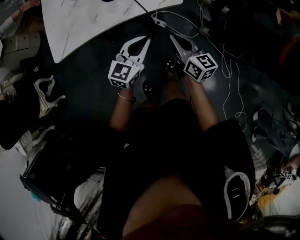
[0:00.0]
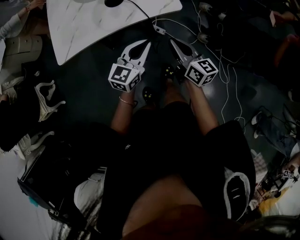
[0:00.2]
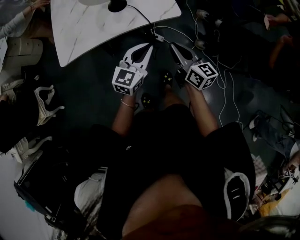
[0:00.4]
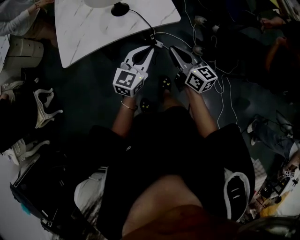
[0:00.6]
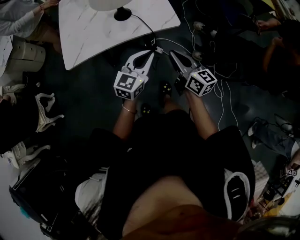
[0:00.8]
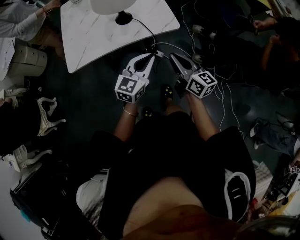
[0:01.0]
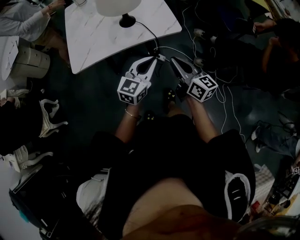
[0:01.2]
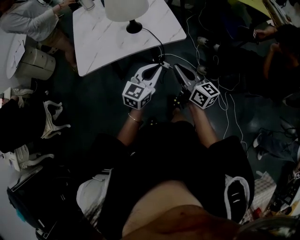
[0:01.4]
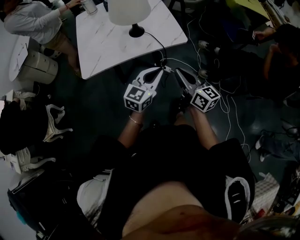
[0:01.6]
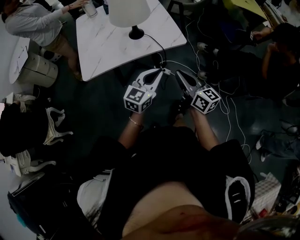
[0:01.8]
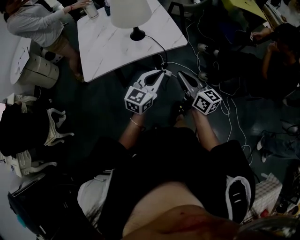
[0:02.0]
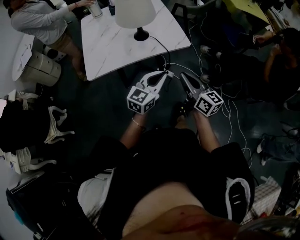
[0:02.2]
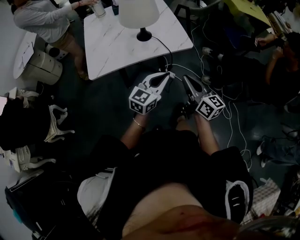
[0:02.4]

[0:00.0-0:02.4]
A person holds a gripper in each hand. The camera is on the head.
0:00.0 to 0:01.2: Both grippers move upward and backward, approximately 10 cm.
0:01.2 to 0:02.4: The right gripper shifts by roughly 5 cm.

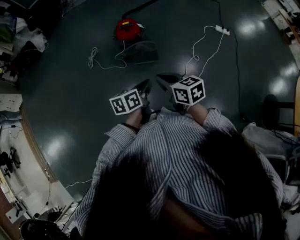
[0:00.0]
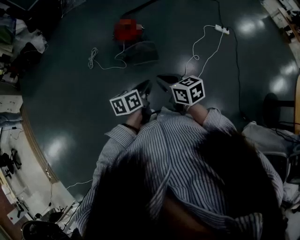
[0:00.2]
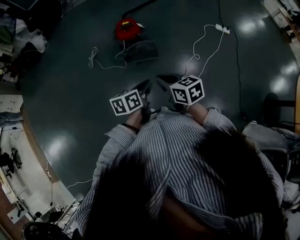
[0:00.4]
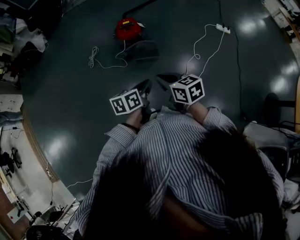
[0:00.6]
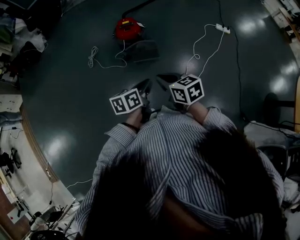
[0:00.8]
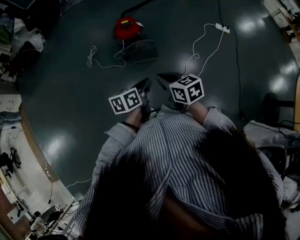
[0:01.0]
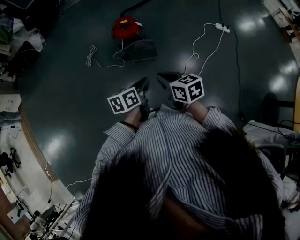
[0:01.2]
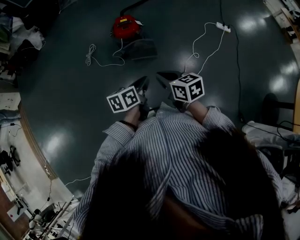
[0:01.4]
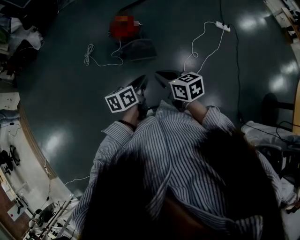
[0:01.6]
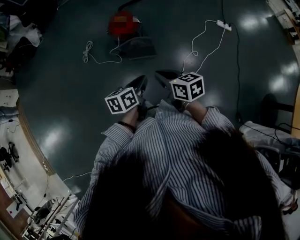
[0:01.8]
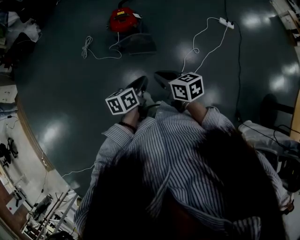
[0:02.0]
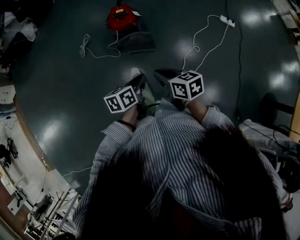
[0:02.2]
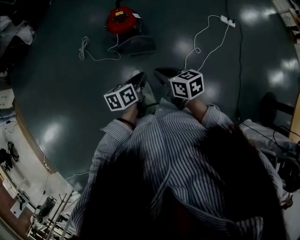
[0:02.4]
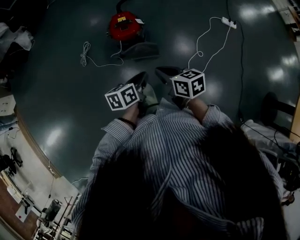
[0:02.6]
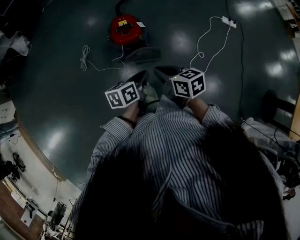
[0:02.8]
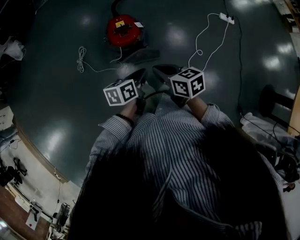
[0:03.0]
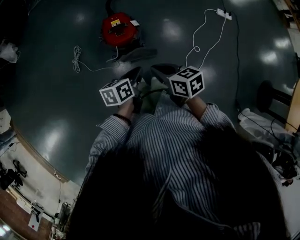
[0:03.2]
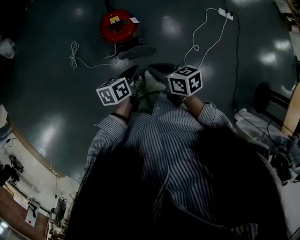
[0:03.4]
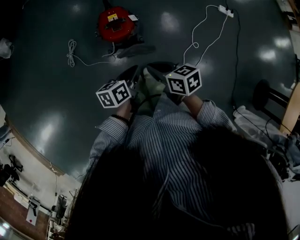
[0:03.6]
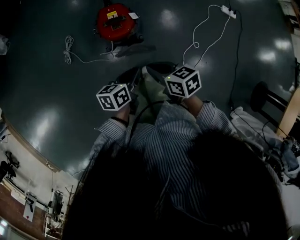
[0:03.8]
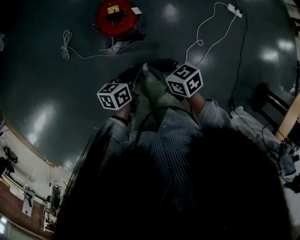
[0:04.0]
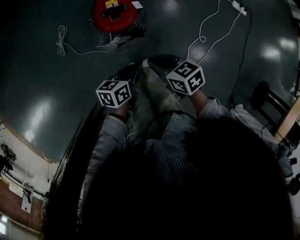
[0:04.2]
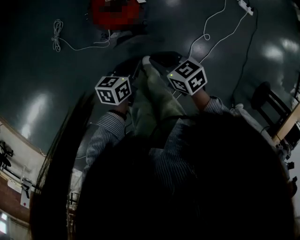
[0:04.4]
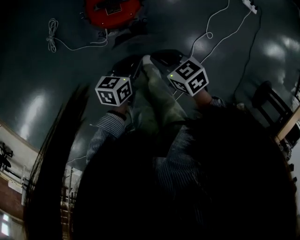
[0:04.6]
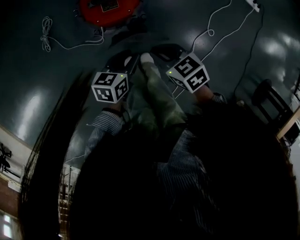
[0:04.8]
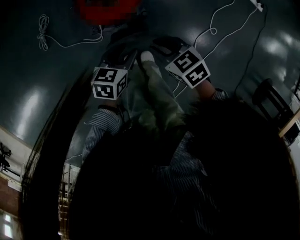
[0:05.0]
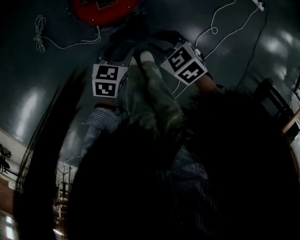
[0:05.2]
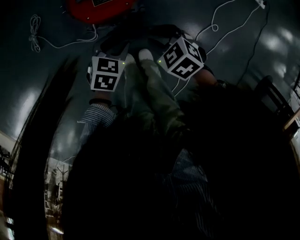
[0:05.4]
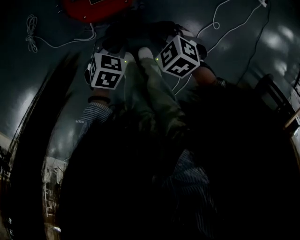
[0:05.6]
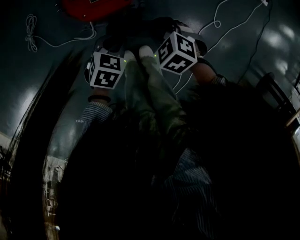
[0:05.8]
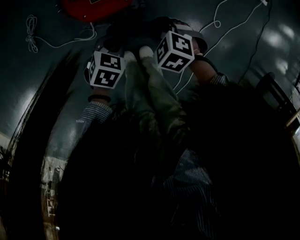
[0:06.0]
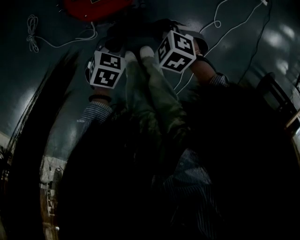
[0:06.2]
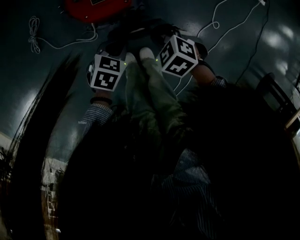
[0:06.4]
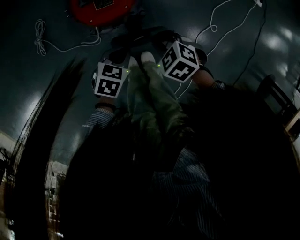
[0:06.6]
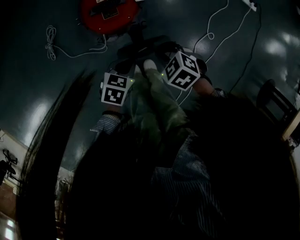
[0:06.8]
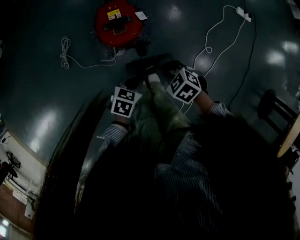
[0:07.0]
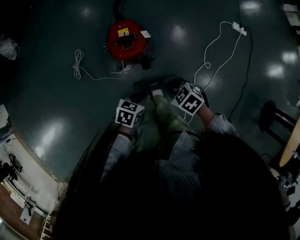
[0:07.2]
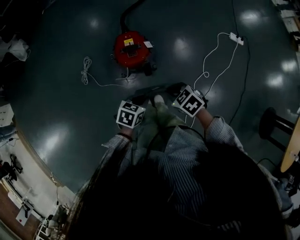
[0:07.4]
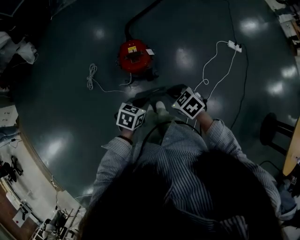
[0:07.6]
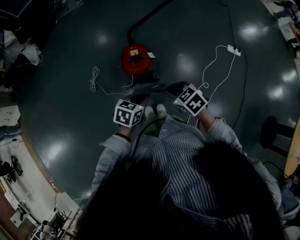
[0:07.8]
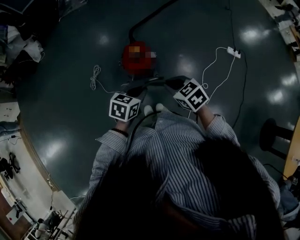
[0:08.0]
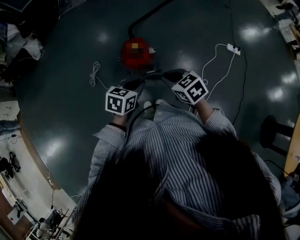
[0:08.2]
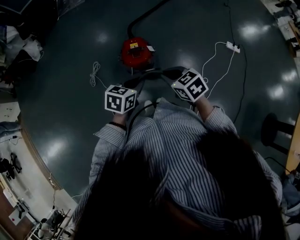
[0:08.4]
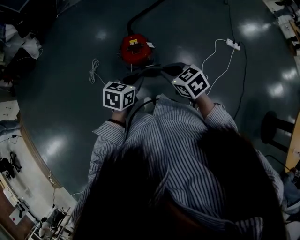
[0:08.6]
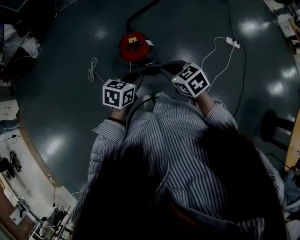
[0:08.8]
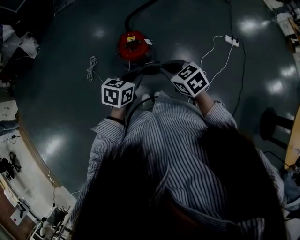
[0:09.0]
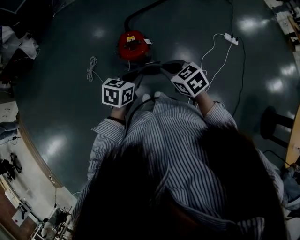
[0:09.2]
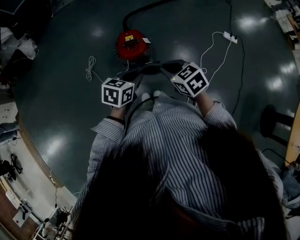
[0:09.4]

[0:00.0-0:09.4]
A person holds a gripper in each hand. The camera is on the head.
0:00.0 to 0:01.6: The right gripper shifts by about 5 cm. The left gripper moves forward, about 5 cm.
0:01.6 to 0:03.2: Both grippers travel together forward, approximately 25 cm.
0:03.2 to 0:04.8: The grippers both shift downward by some 30 cm. The right gripper turns by approximately 30 degrees; the left gripper opens.
0:04.8 to 0:06.2: Both grippers move downward, approximately 10 cm. The left gripper changes its angle by roughly 40 degrees, and closes, while the right gripper changes its angle by some 40 degrees, and opens, then closes once more.
0:06.2 to 0:07.8: Both grippers move upward, roughly 40 cm. The right gripper swivels roughly 30 degrees.
0:07.8 to 0:09.4: The left gripper travels upward by about 5 cm.

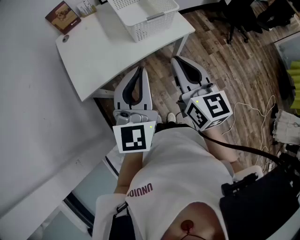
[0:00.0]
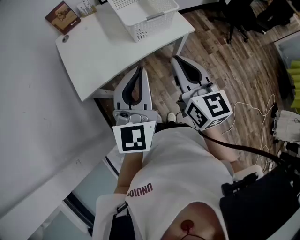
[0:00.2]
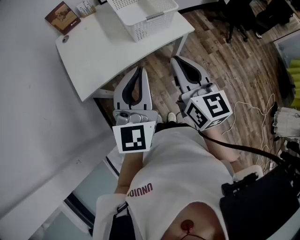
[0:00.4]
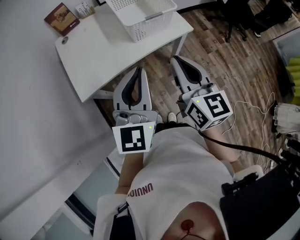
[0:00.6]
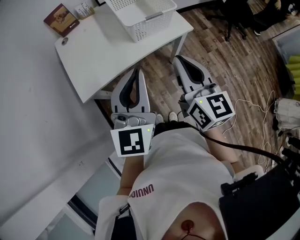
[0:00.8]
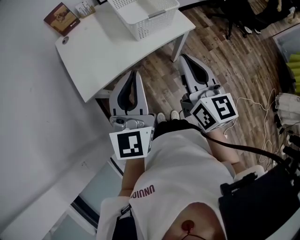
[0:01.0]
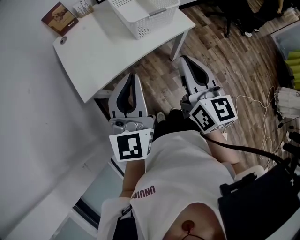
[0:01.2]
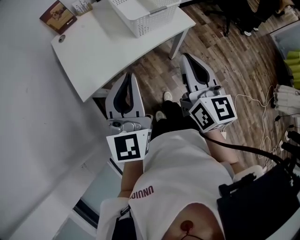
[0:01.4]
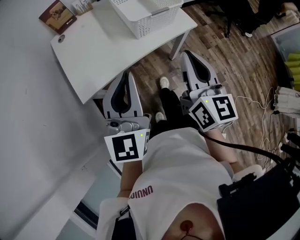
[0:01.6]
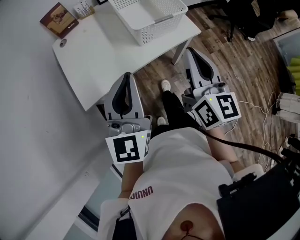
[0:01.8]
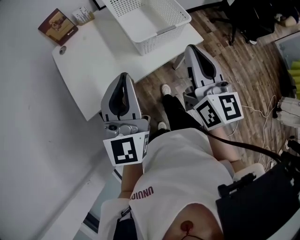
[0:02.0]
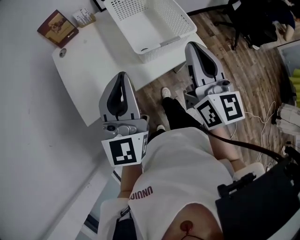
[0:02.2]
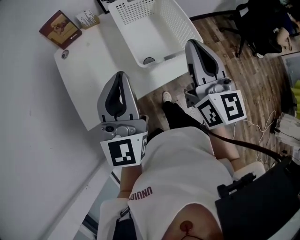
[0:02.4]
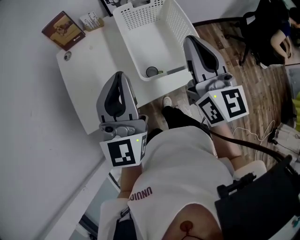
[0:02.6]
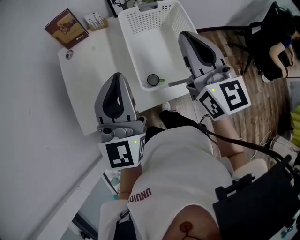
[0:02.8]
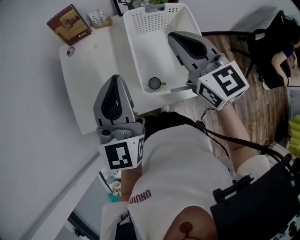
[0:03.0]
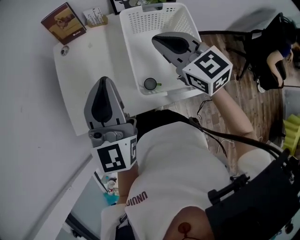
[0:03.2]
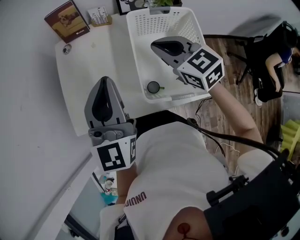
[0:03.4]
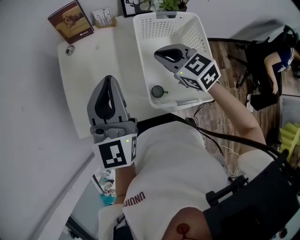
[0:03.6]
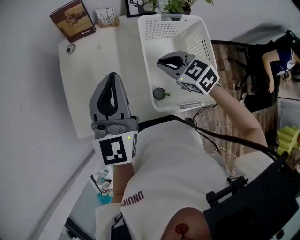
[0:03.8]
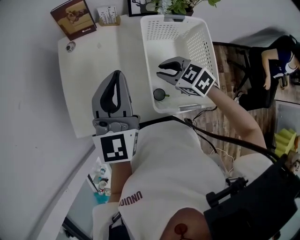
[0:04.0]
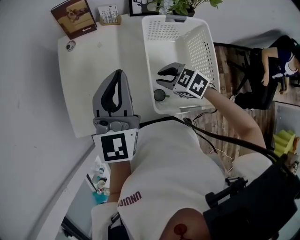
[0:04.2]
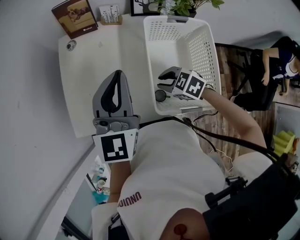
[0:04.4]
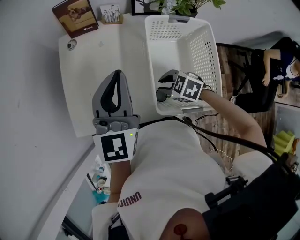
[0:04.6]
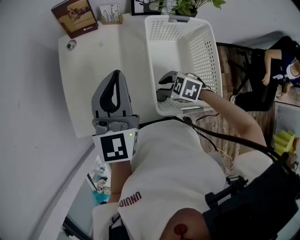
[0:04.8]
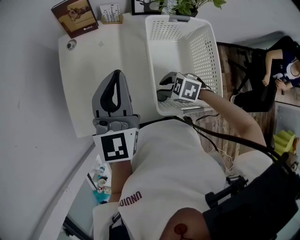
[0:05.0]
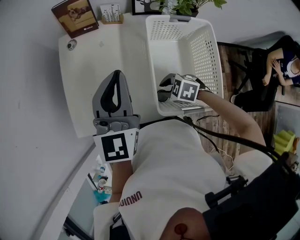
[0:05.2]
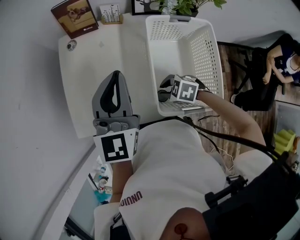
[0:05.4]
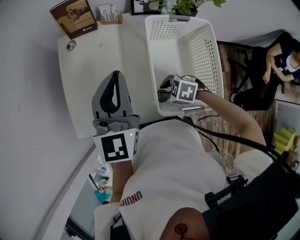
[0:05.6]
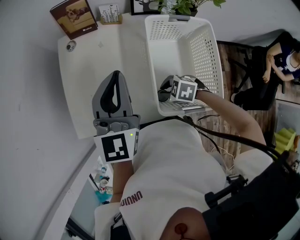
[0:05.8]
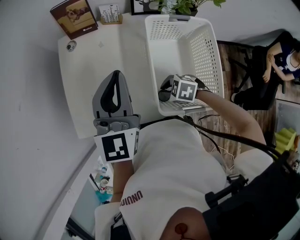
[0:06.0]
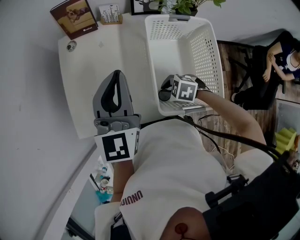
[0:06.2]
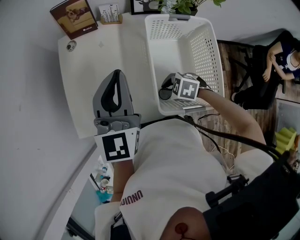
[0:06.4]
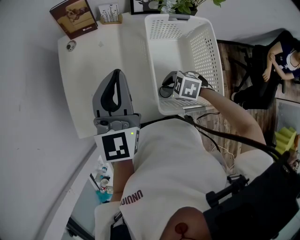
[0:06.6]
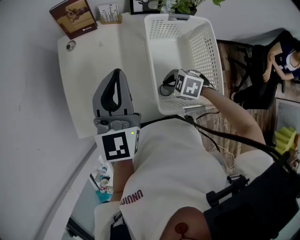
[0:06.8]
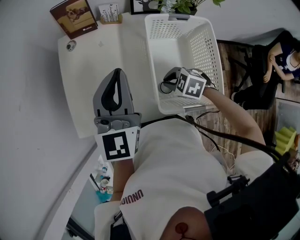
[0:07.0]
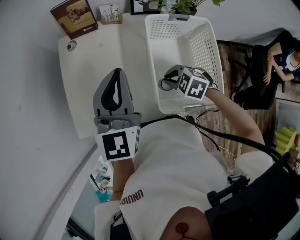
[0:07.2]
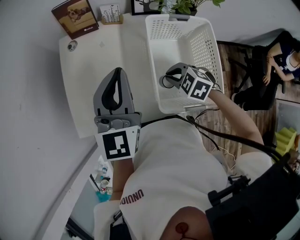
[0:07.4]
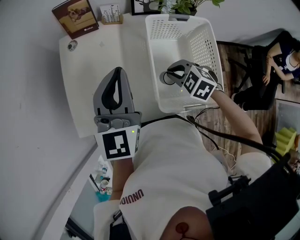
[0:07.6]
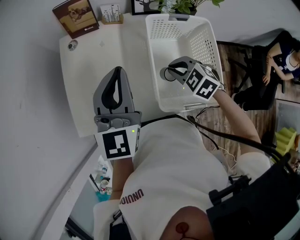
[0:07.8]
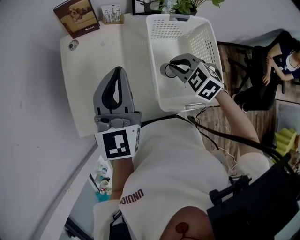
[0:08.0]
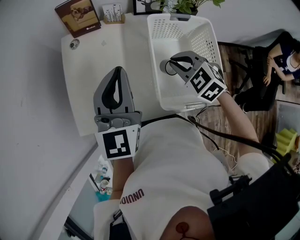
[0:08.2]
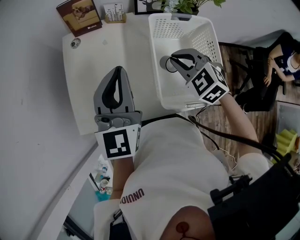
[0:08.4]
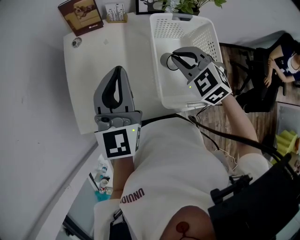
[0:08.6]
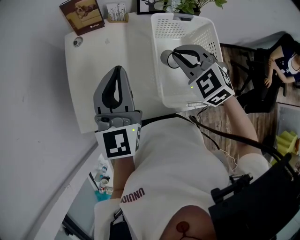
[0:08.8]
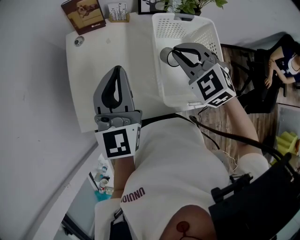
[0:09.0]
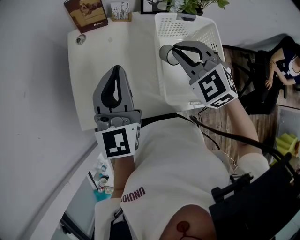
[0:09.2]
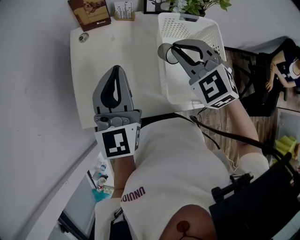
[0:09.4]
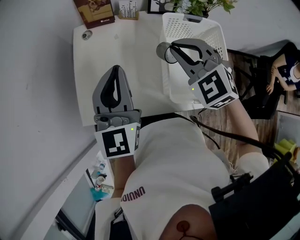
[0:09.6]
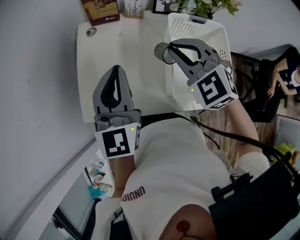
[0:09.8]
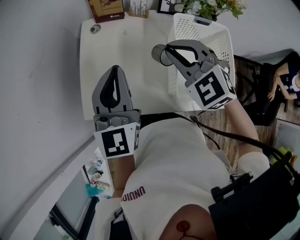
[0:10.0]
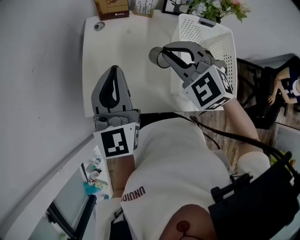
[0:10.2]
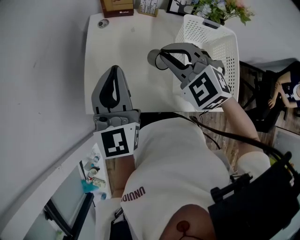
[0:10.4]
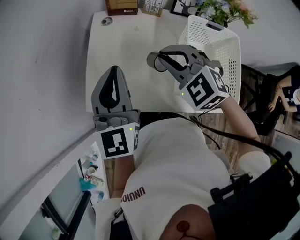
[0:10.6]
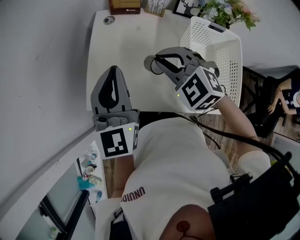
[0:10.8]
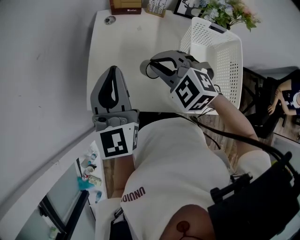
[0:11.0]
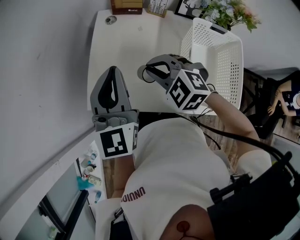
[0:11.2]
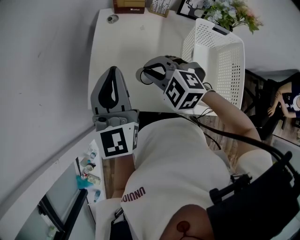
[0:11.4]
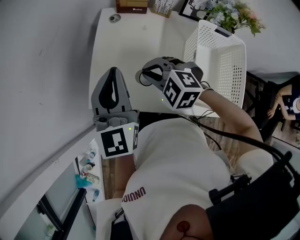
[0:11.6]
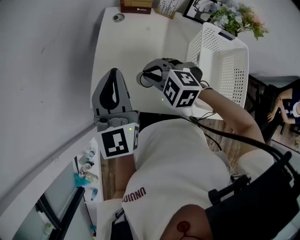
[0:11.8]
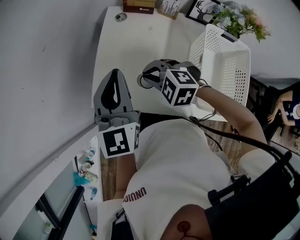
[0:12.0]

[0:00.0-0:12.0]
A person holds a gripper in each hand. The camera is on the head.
0:00.0 to 0:01.6: The left gripper is displaced to the left by approximately 5 cm.
0:01.6 to 0:03.0: The right gripper moves some 35 cm, and changes its angle by roughly 40 degrees. Meanwhile the left gripper ends up some 25 cm from where it was.
0:03.0 to 0:04.4: The left gripper changes place by some 10 cm; the right gripper heads downward, covering approximately 25 cm, points its fingers about 50 degrees further downward, and opens.
0:04.4 to 0:06.0: The right gripper goes some 5 cm downward.
0:06.0 to 0:07.6: The right gripper travels upward and to the right by some 10 cm, and rotates approximately 20 degrees.
0:07.6 to 0:09.0: The right gripper is displaced upward by some 15 cm, and changes its angle by about 30 degrees.
0:09.0 to 0:10.4: Both grippers move to the left, about 10 cm.
0:10.4 to 0:12.0: The right gripper moves downward and to the left, approximately 15 cm, and turns by roughly 30 degrees. The left gripper heads to the left, covering roughly 5 cm.
